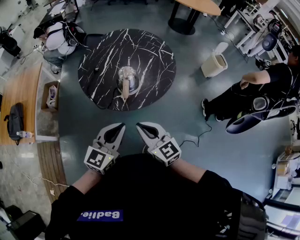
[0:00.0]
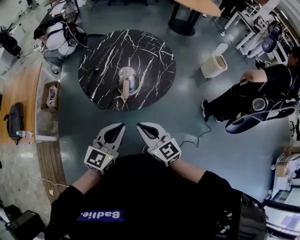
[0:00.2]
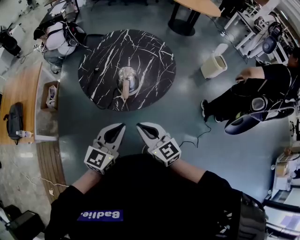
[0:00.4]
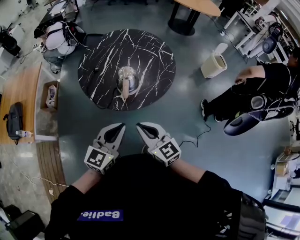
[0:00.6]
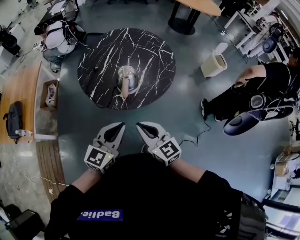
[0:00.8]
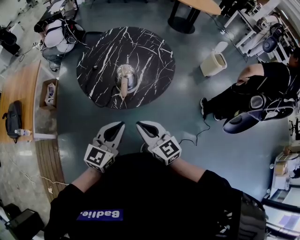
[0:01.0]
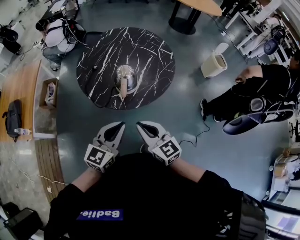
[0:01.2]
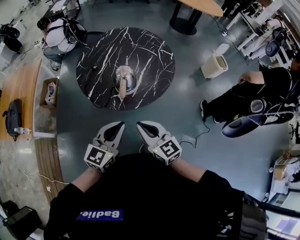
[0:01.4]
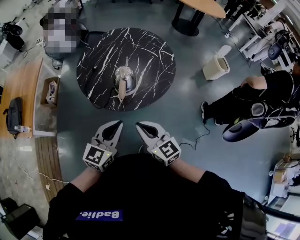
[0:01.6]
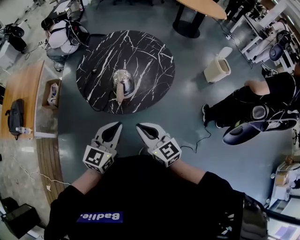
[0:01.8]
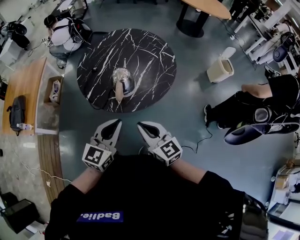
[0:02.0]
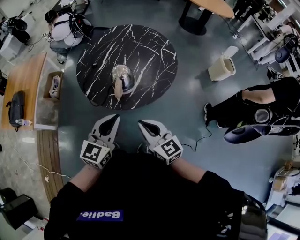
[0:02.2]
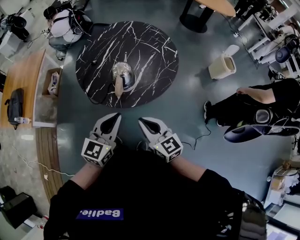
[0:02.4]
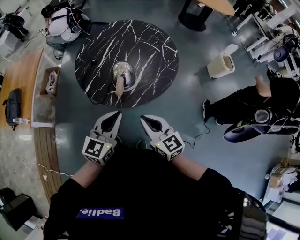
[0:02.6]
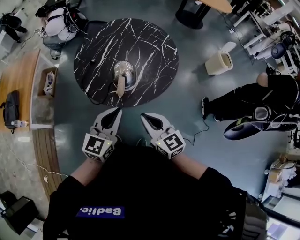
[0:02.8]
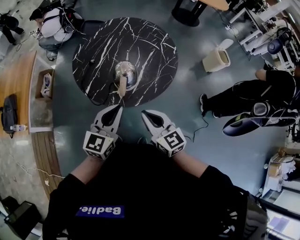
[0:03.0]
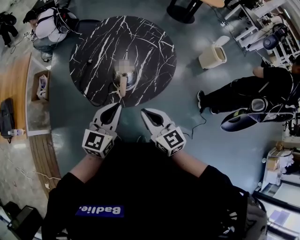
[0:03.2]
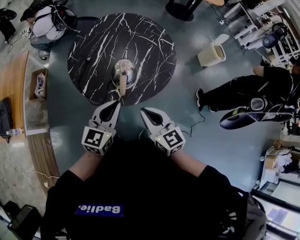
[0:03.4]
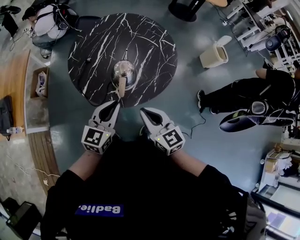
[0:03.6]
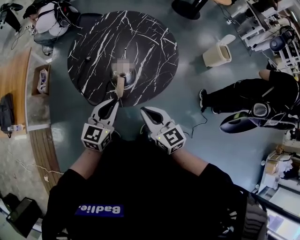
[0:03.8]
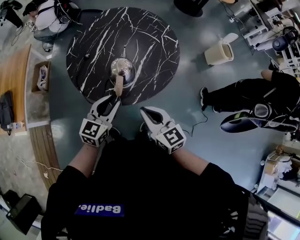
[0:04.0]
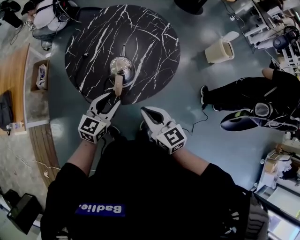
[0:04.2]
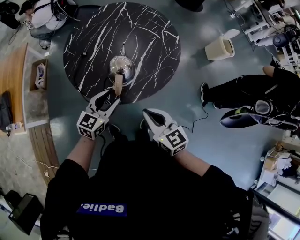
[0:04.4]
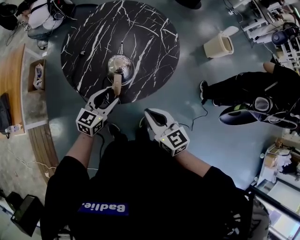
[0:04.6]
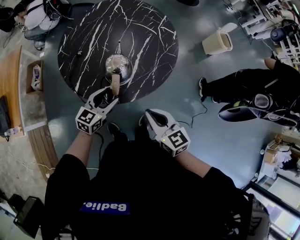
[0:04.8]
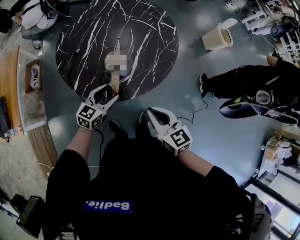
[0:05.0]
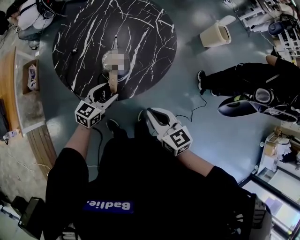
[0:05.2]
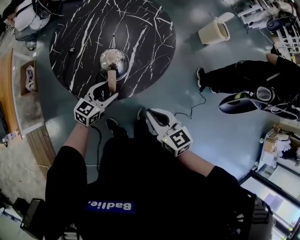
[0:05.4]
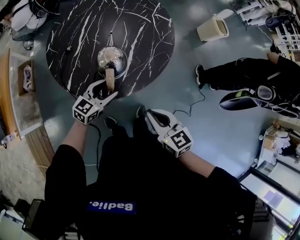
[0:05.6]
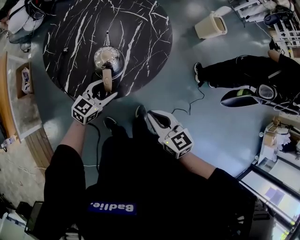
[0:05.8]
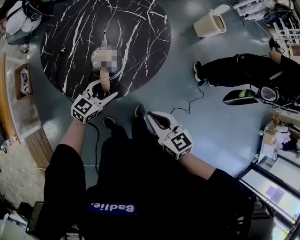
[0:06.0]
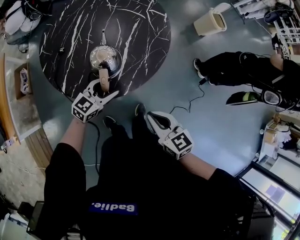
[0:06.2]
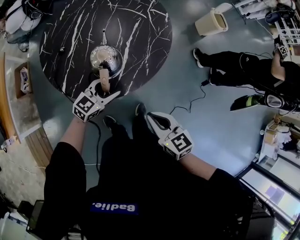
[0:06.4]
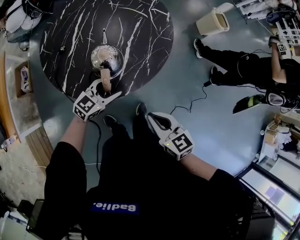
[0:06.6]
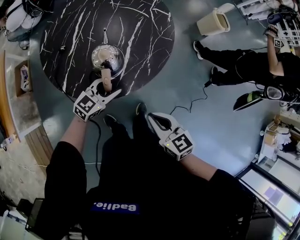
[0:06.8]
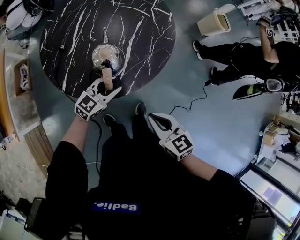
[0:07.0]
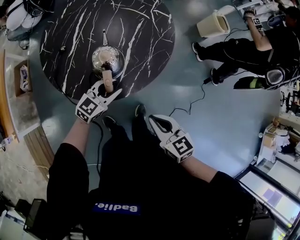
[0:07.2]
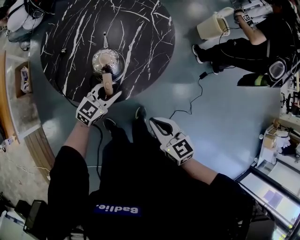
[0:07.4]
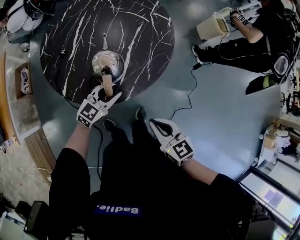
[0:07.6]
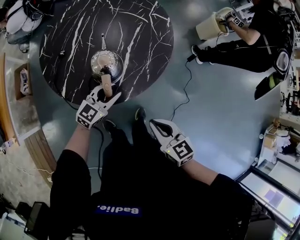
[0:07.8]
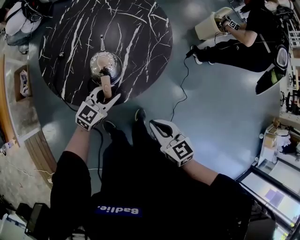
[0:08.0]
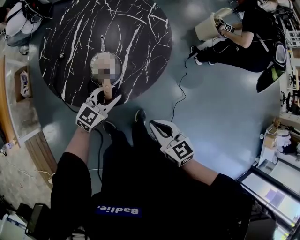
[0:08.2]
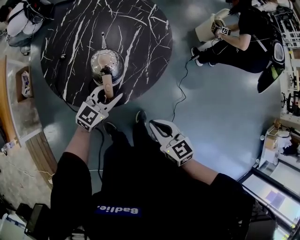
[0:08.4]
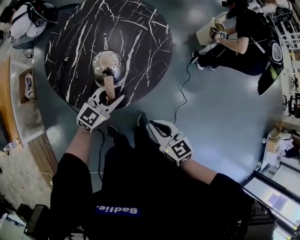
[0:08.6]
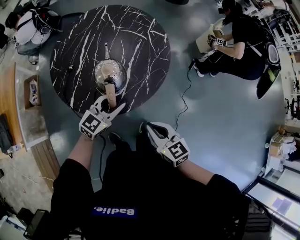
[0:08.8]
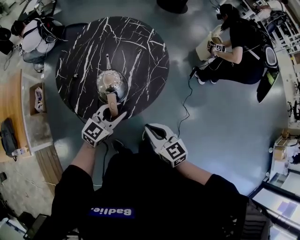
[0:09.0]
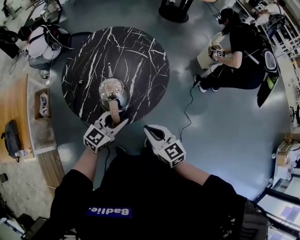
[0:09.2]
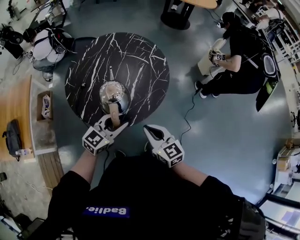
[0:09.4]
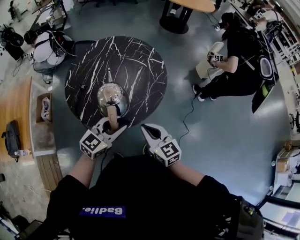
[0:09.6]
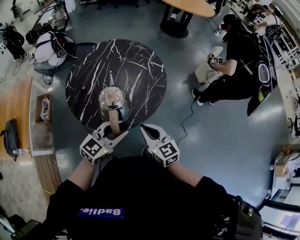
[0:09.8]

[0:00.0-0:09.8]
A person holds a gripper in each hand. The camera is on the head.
0:00.0 to 0:01.4: The grippers stay close to where they were, moving slightly.
0:01.4 to 0:02.8: The two grippers go some 5 cm forward.
0:02.8 to 0:04.2: The right gripper shifts approximately 5 cm forward; the left gripper shifts roughly 15 cm downward and forward, and opens.
0:04.2 to 0:05.6: The left gripper shifts roughly 10 cm downward, and opens up; the right gripper goes approximately 5 cm downward.
0:05.6 to 0:07.0: The left gripper closes its fingers.
0:07.0 to 0:08.4: The grippers move only a little.
0:08.4 to 0:09.8: The right gripper is displaced upward by approximately 10 cm. The left gripper moves upward and backward, roughly 20 cm.

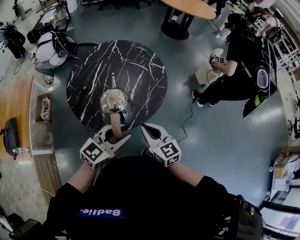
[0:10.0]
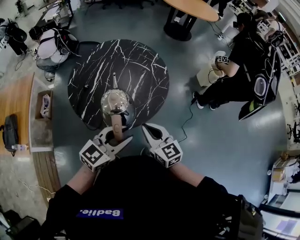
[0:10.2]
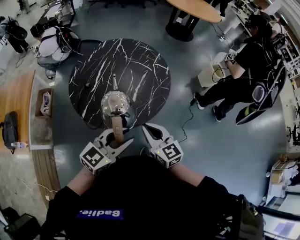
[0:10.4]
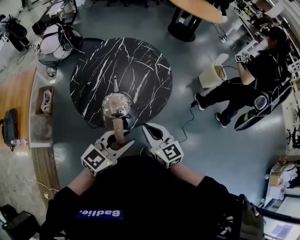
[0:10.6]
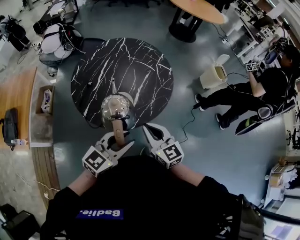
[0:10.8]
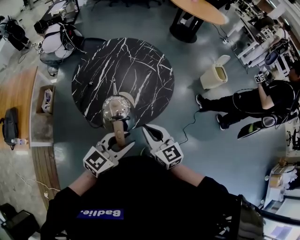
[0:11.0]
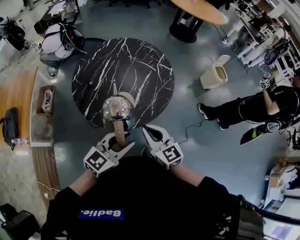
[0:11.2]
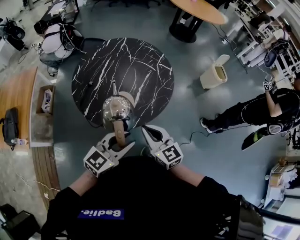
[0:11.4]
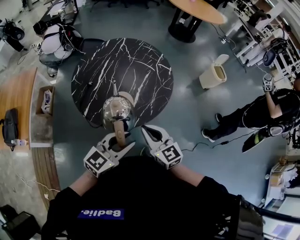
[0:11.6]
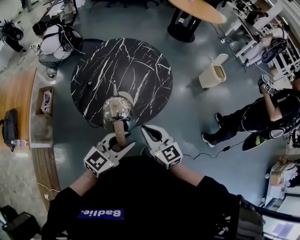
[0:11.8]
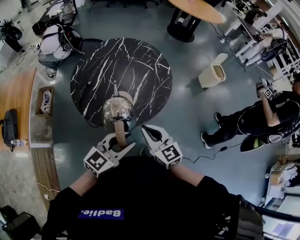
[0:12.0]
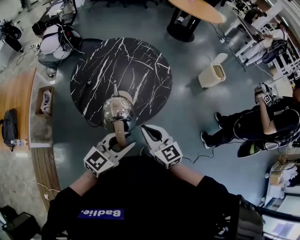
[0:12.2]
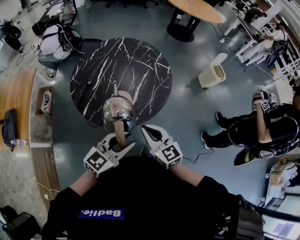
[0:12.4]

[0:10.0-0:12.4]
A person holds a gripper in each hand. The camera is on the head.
0:10.0 to 0:12.4: There are only small adjustments of the grippers.

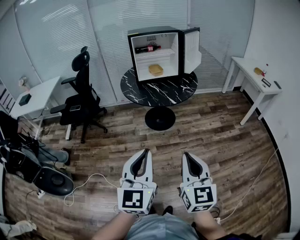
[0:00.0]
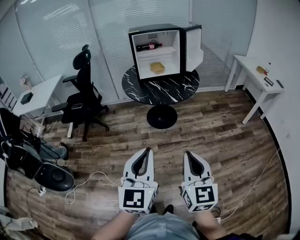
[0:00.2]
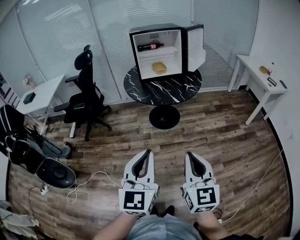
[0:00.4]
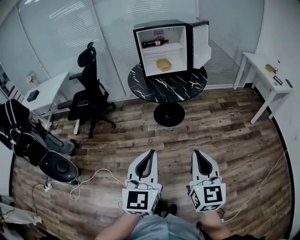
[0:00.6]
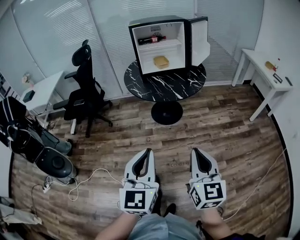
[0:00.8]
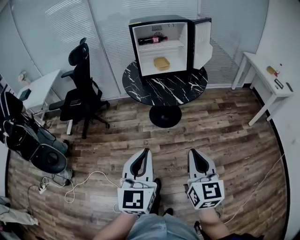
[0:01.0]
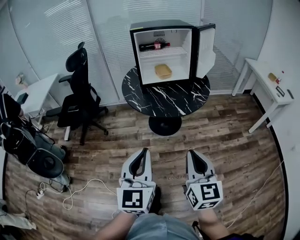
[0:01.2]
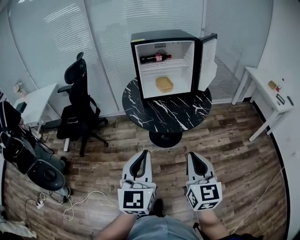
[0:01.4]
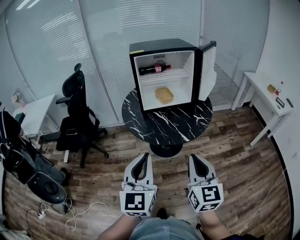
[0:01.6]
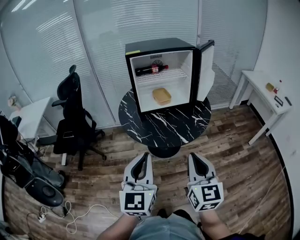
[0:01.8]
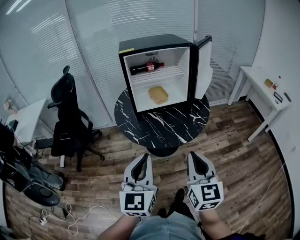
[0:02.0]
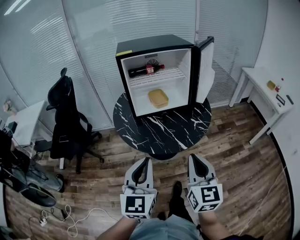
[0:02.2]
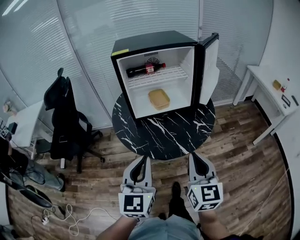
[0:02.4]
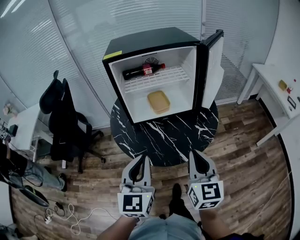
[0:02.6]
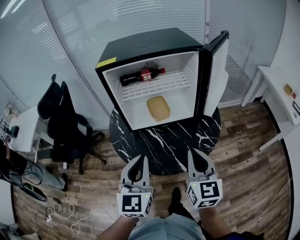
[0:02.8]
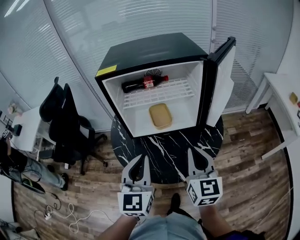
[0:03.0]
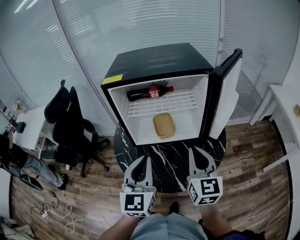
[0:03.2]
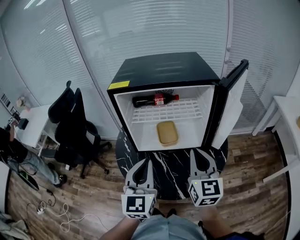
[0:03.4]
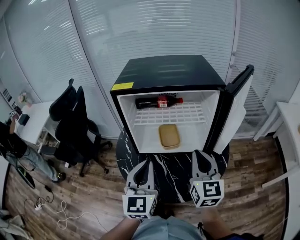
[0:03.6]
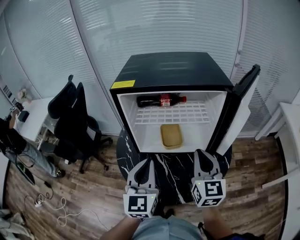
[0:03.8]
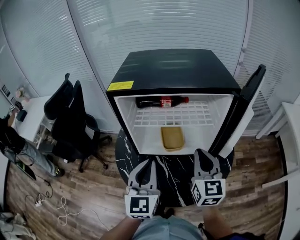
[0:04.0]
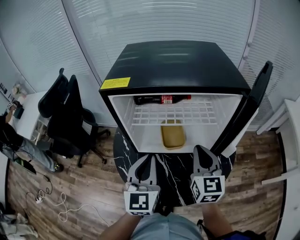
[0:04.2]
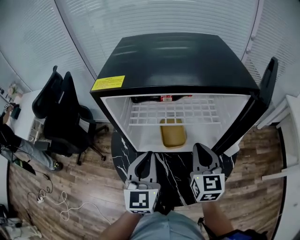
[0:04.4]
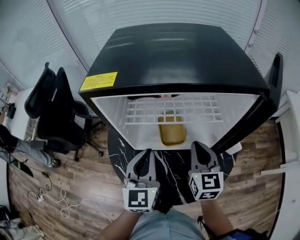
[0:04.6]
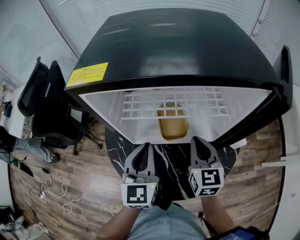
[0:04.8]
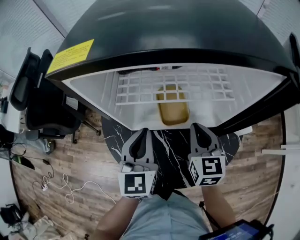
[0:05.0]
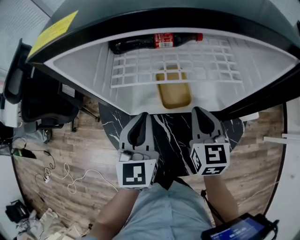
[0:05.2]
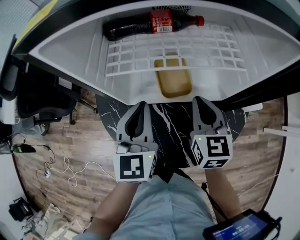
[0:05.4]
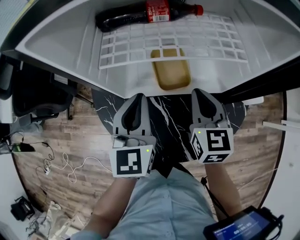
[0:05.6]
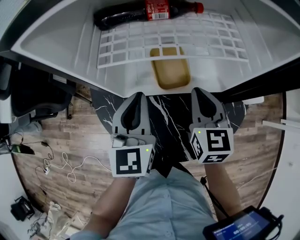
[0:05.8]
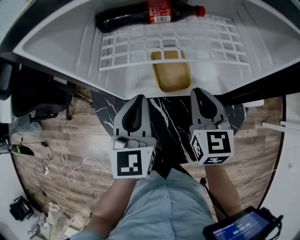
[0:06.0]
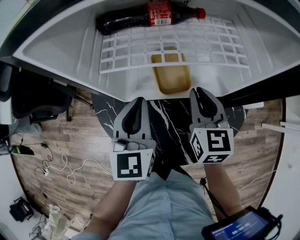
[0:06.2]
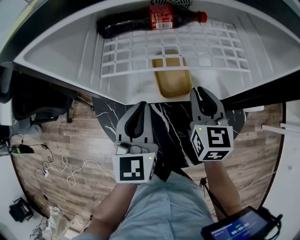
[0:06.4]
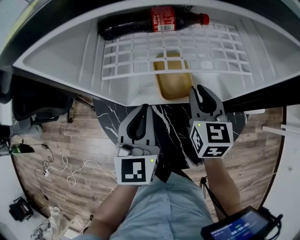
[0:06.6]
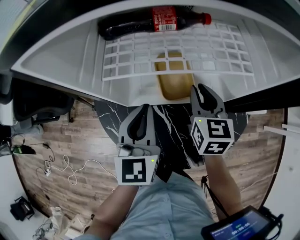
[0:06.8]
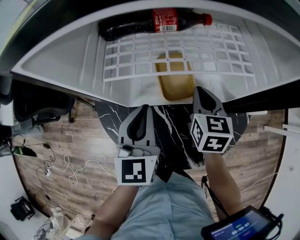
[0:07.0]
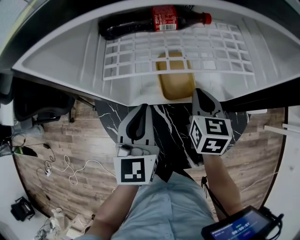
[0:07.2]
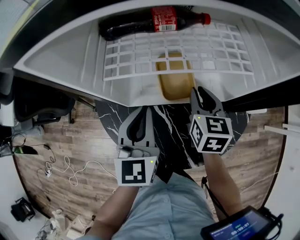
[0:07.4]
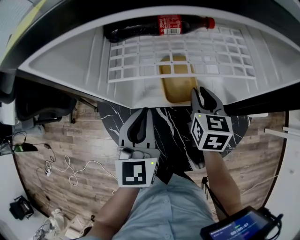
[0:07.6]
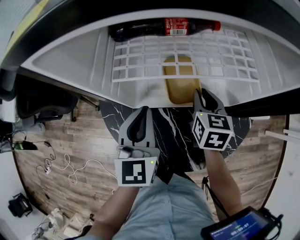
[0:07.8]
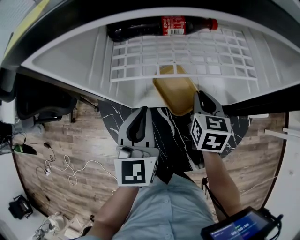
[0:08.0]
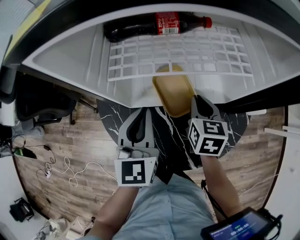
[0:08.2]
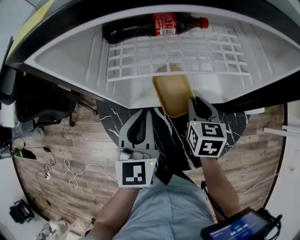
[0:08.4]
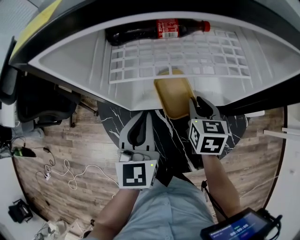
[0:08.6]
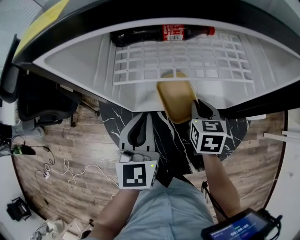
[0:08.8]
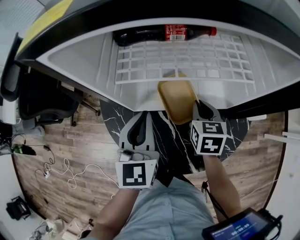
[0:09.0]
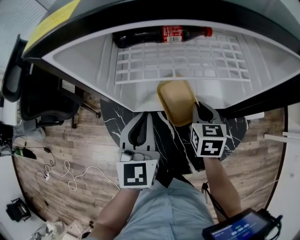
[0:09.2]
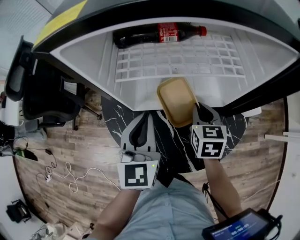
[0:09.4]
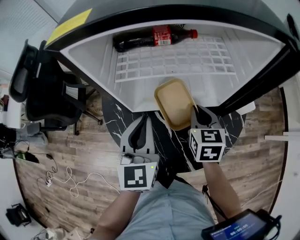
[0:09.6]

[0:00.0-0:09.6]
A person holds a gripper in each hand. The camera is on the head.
0:00.0 to 0:01.6: Both grippers travel together forward, about 30 cm.
0:01.6 to 0:03.2: The two grippers go some 40 cm forward.
0:03.2 to 0:04.8: The two grippers go roughly 20 cm forward and downward.
0:04.8 to 0:06.4: The right gripper heads downward, covering approximately 5 cm.
0:06.4 to 0:08.0: The right gripper heads downward, covering approximately 5 cm.
0:08.0 to 0:09.6: The left gripper changes place by some 5 cm; the right gripper is displaced backward by approximately 5 cm.

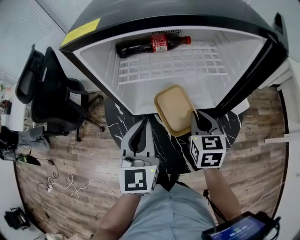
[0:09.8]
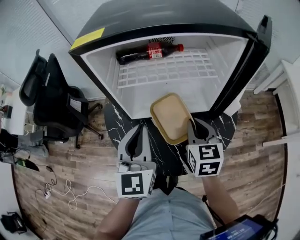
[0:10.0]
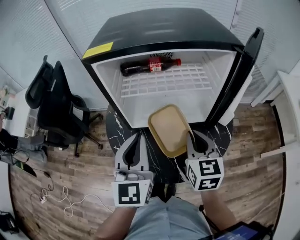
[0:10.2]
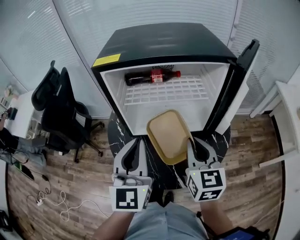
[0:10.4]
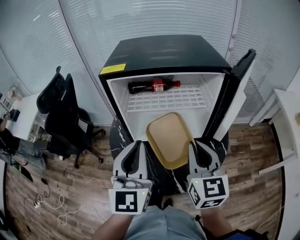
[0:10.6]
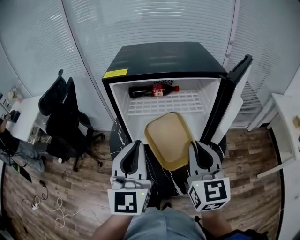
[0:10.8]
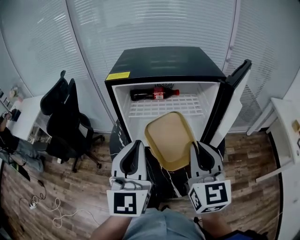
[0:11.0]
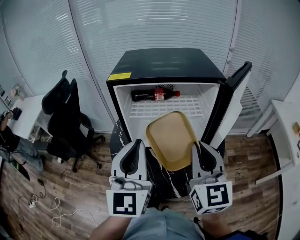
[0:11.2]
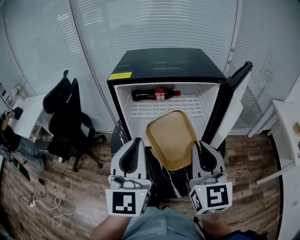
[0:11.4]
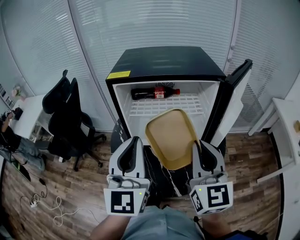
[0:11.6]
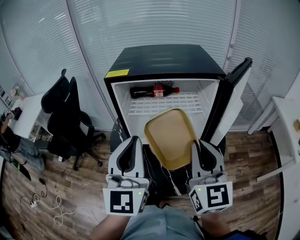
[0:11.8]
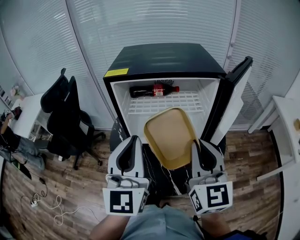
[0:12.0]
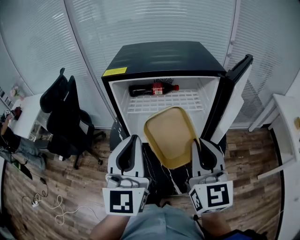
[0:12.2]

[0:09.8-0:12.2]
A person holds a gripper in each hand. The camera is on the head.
0:09.8 to 0:11.0: Both grippers travel together upward and backward, about 25 cm. The right gripper swivels about 30 degrees.
0:11.0 to 0:12.2: There are only small adjustments of the grippers.
